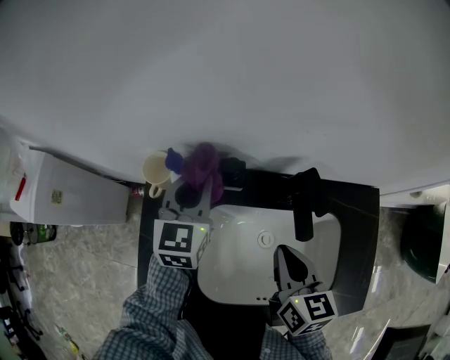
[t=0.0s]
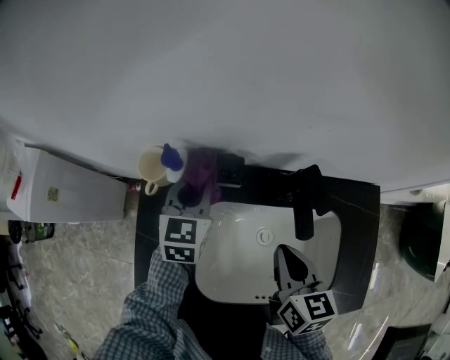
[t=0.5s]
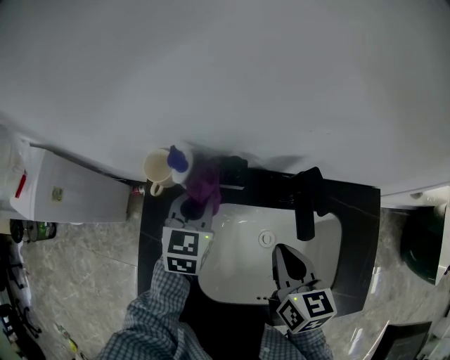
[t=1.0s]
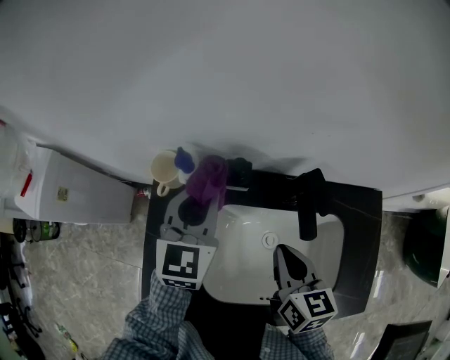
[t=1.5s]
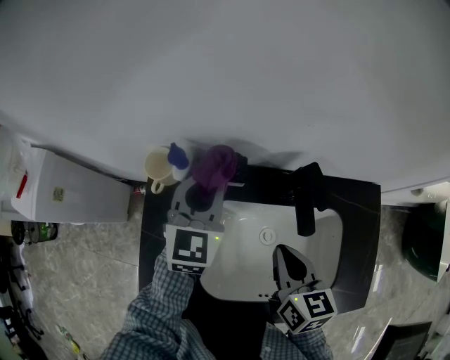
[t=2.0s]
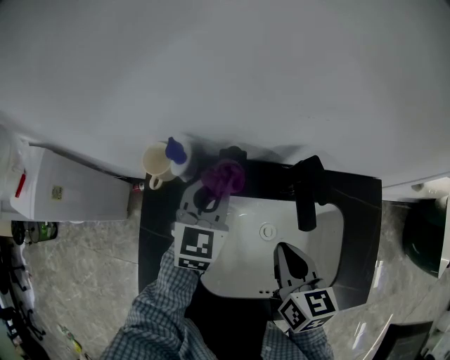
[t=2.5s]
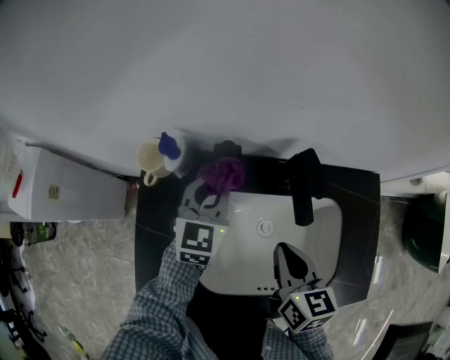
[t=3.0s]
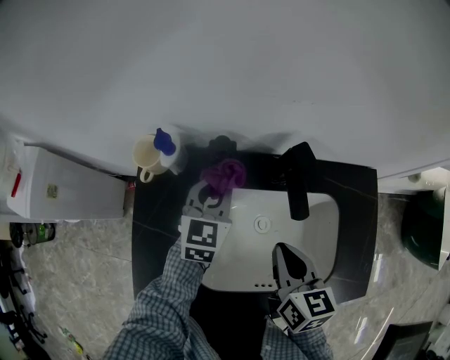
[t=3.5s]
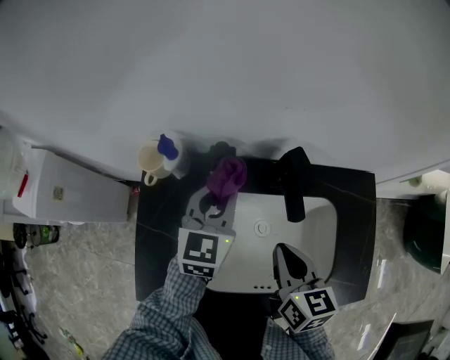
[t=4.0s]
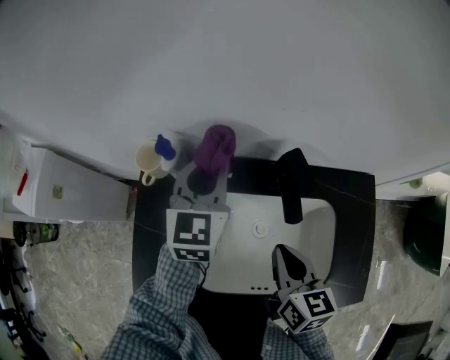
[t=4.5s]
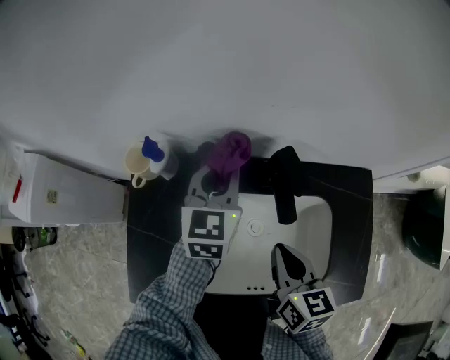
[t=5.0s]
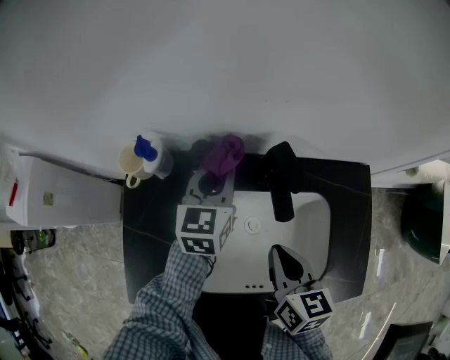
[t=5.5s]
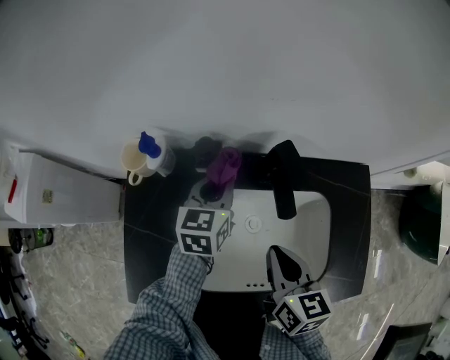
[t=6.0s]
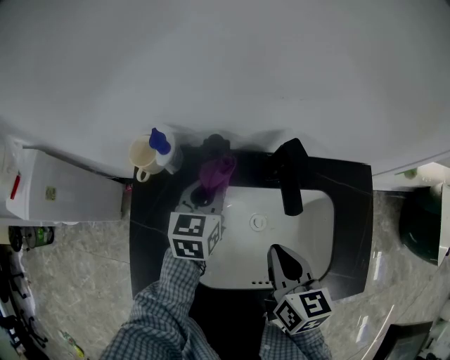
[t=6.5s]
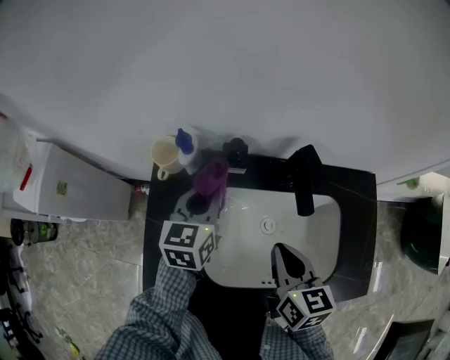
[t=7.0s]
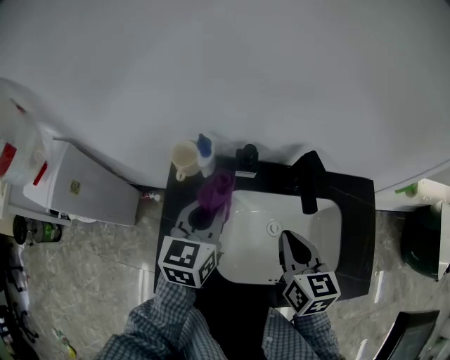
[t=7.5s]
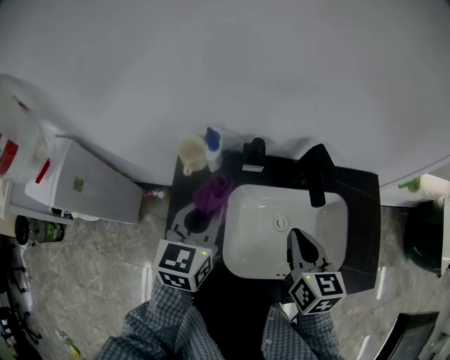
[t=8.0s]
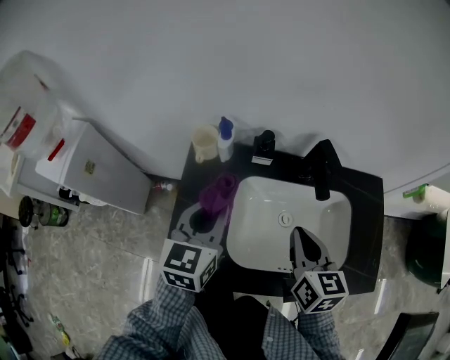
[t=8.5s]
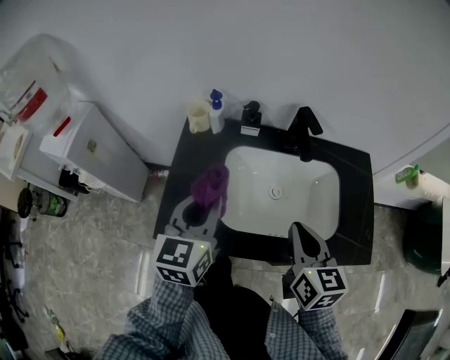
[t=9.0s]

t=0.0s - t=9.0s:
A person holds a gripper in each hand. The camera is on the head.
t=0.0s - t=2.0s: The left gripper goes downward and returns, roughly 5 cm each way.
t=2.0s - t=4.5s: The left gripper travels downward and back again, some 10 cm each way.
t=4.5s - t=7.0s: The left gripper moves downward, backward and to the left, about 10 cm.
t=7.0s - t=9.0s: The left gripper moves backward and upward, about 25 cm. The right gripper moves backward, approximately 15 cm.

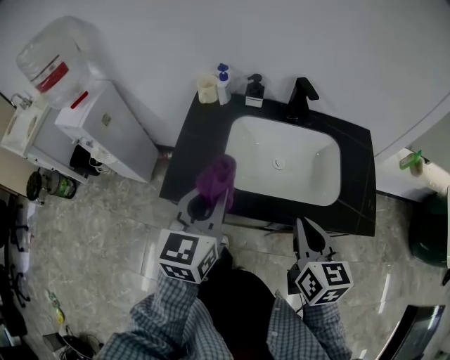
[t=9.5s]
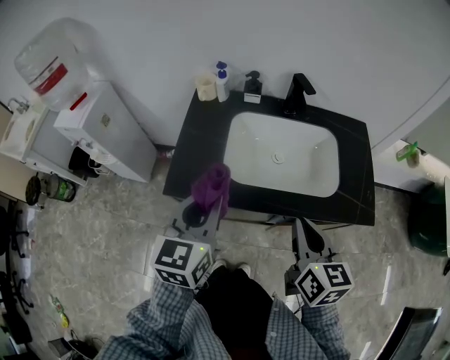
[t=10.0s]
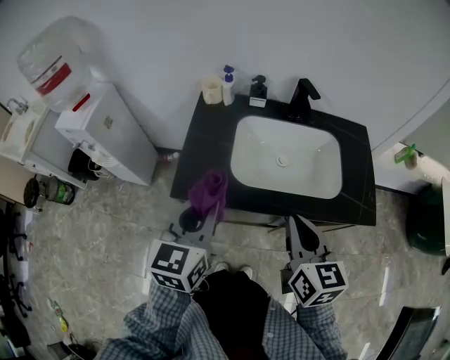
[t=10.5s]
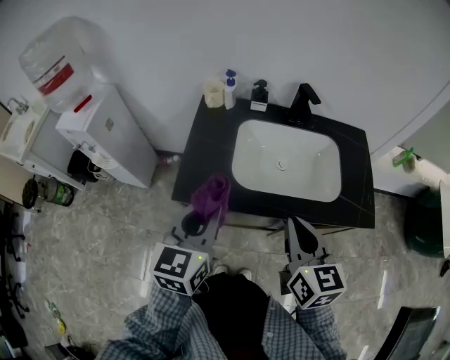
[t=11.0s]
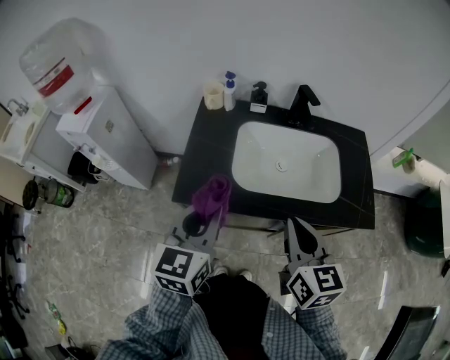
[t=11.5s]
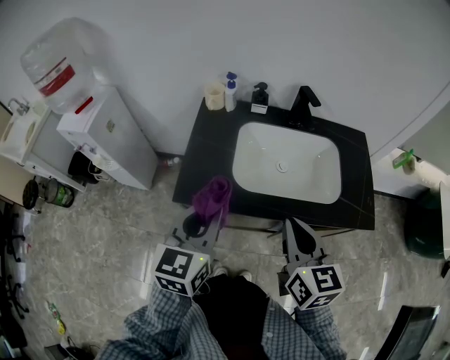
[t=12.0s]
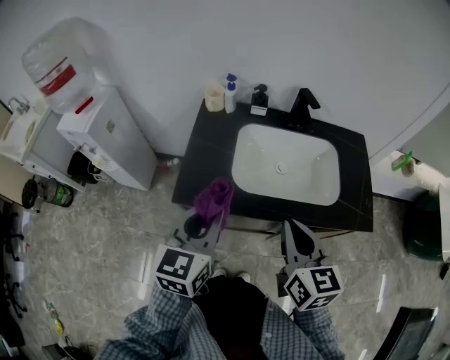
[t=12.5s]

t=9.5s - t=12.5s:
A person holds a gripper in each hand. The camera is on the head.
t=9.5s - t=11.0s: The left gripper shifts approximately 10 cm to the left and backward. The right gripper moves to the left, about 10 cm.
t=11.0s - t=12.5s: Neither gripper changes place.

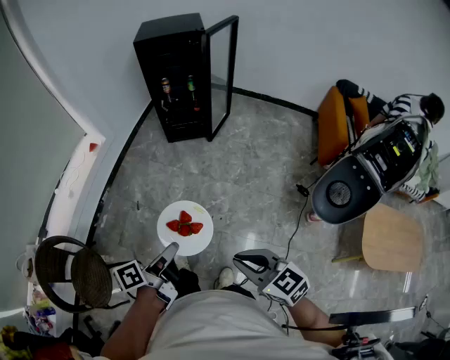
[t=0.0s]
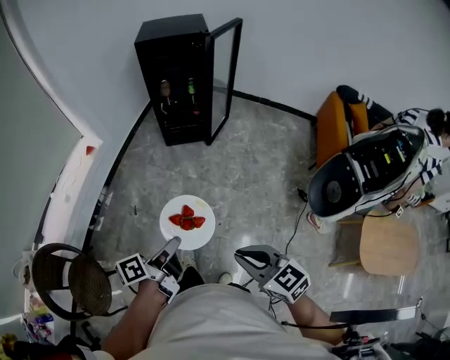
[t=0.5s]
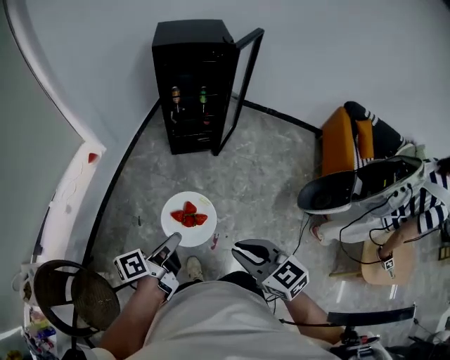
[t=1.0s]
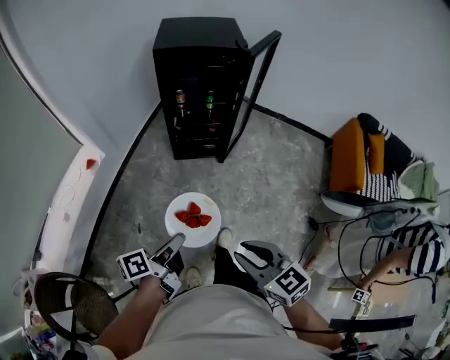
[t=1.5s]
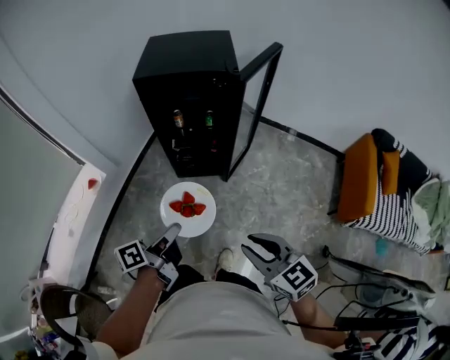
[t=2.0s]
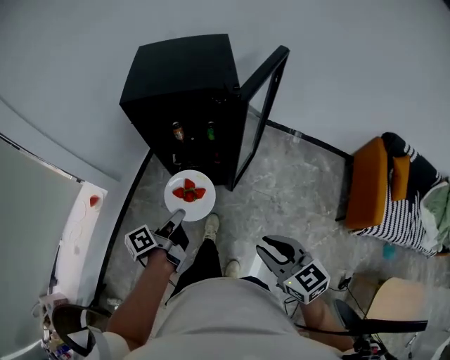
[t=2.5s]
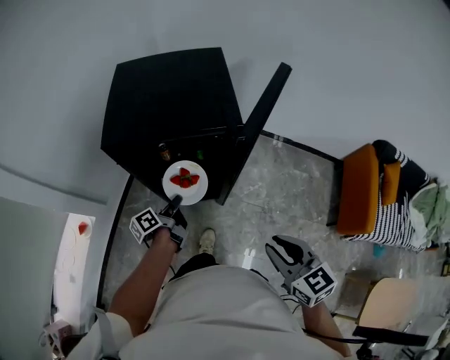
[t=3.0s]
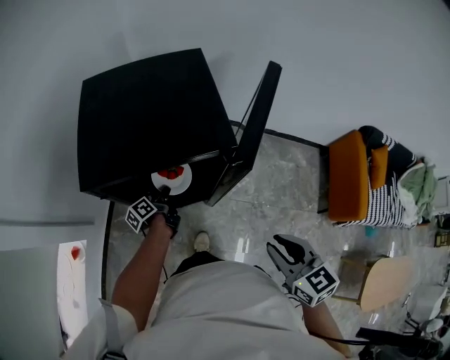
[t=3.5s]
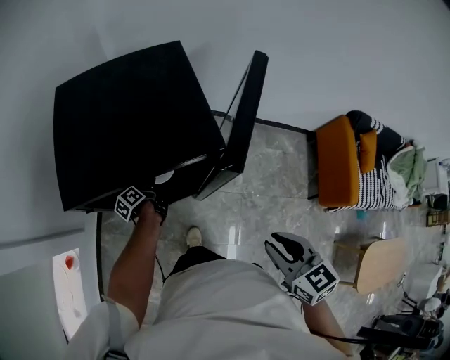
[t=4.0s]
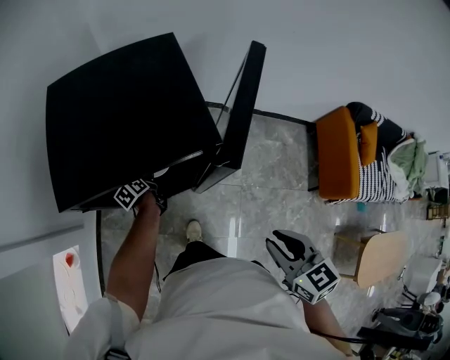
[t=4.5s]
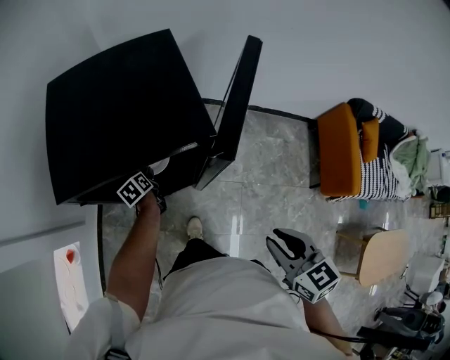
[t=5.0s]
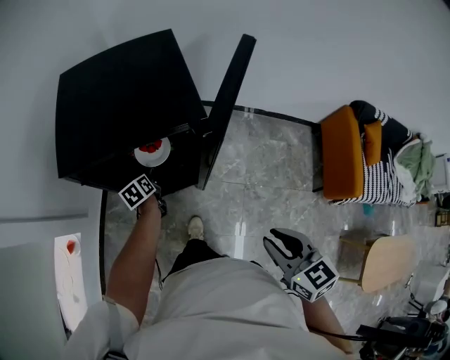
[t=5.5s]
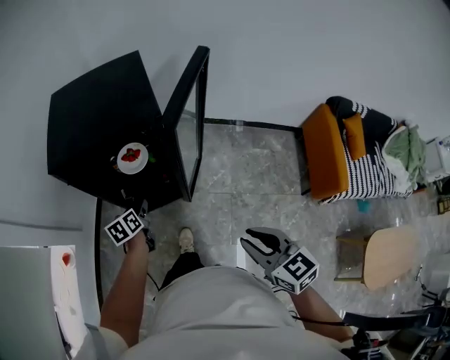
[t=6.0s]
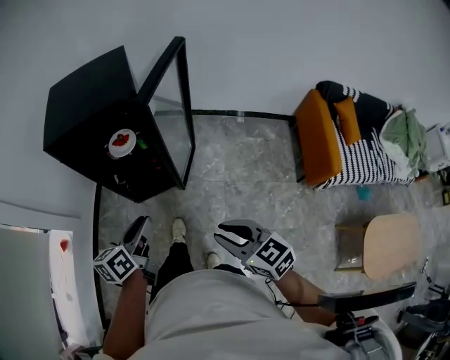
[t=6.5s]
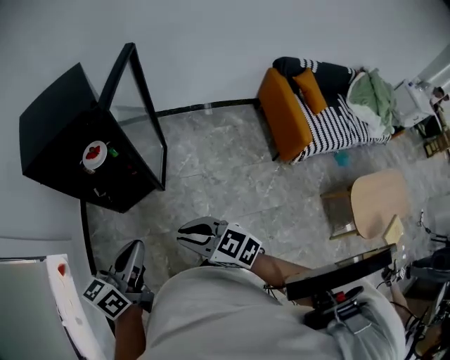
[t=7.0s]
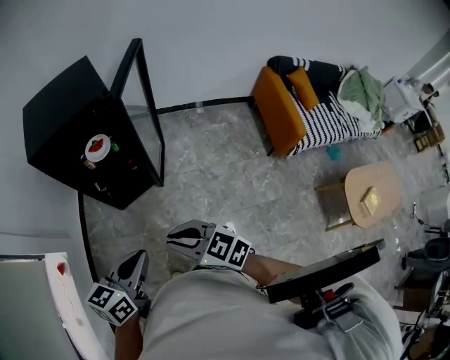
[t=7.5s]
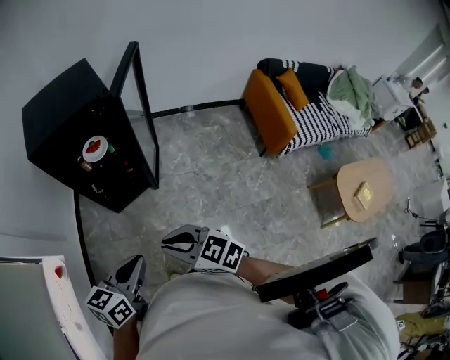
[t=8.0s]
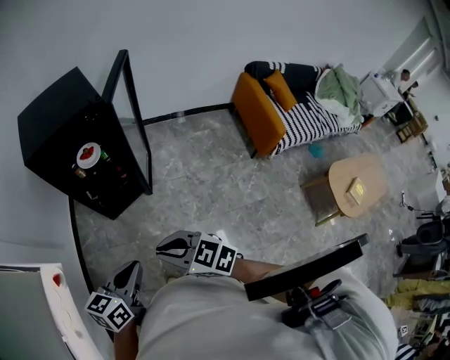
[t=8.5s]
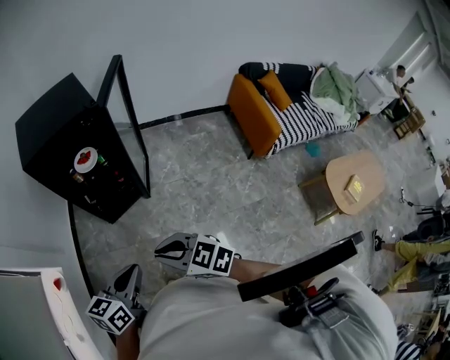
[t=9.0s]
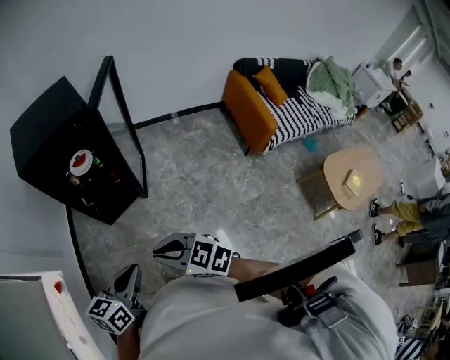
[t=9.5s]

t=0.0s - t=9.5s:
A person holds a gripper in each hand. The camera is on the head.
t=0.0s - t=2.0s: The two grippers travel together, forward, approximately 50 cm.
t=2.0s - t=4.0s: The right gripper moves forward, some 30 cm, and rotates roughly 30 degrees; the left gripper shifts approximately 60 cm forward and downward, and changes its angle by about 20 degrees.
t=4.0s - t=5.5s: The grippers both shift backward by approximately 5 cm. The left gripper changes its angle by approximately 40 degrees, and opens up.
t=5.5s - t=7.5s: The left gripper heads backward and upward, covering approximately 60 cm, rotates roughly 50 degrees, and closes. The right gripper heads backward and to the left, covering some 25 cm, and turns by about 20 degrees.
t=7.5s - t=9.5s: Both grippers move backward, some 5 cm.

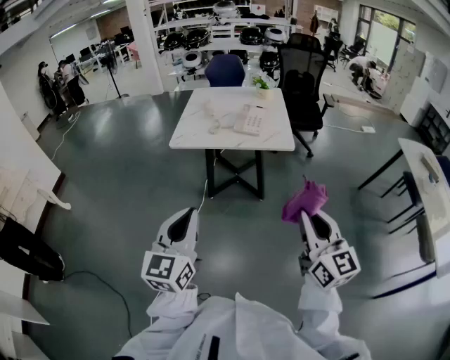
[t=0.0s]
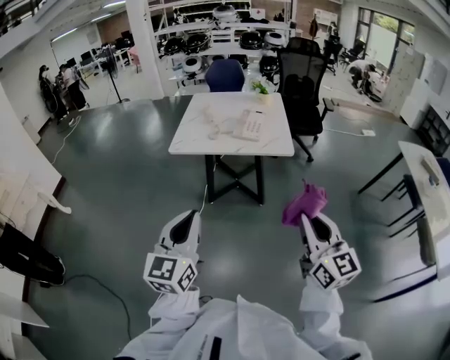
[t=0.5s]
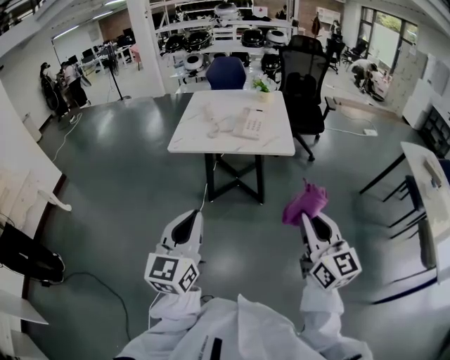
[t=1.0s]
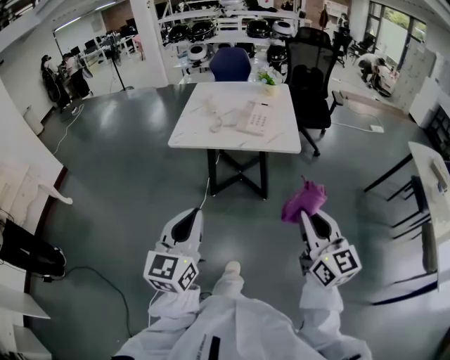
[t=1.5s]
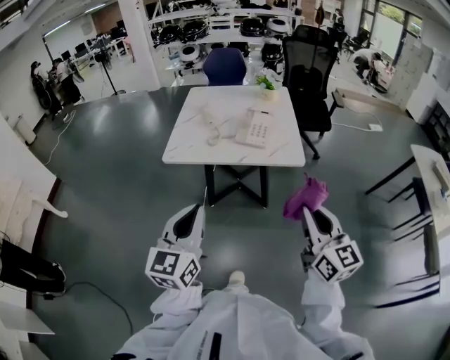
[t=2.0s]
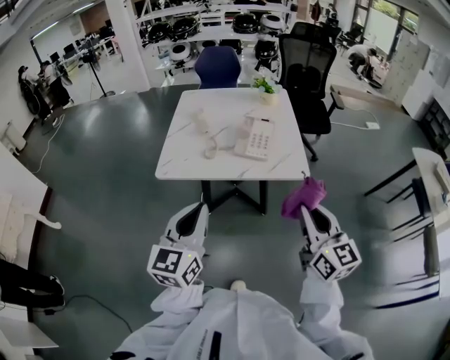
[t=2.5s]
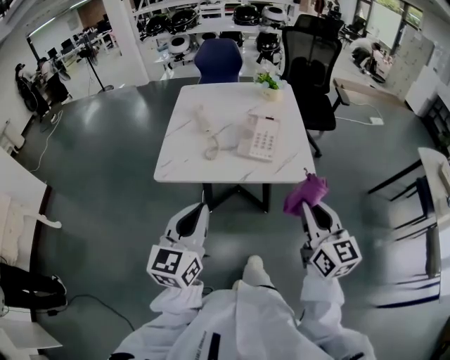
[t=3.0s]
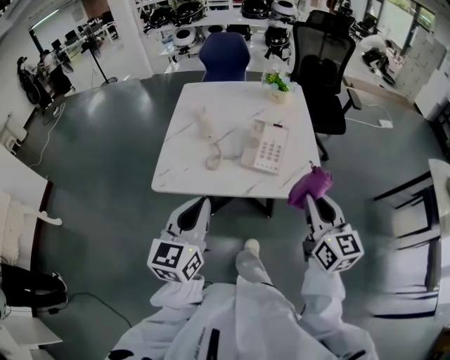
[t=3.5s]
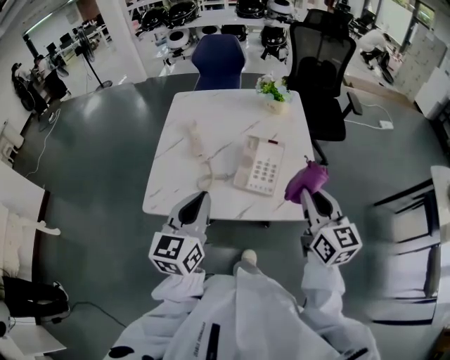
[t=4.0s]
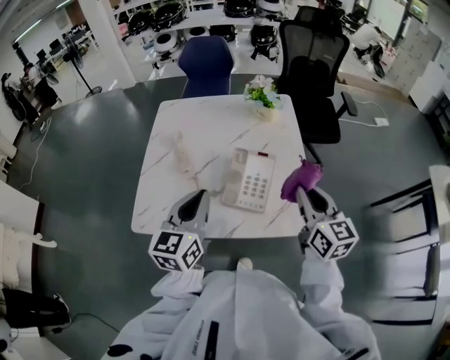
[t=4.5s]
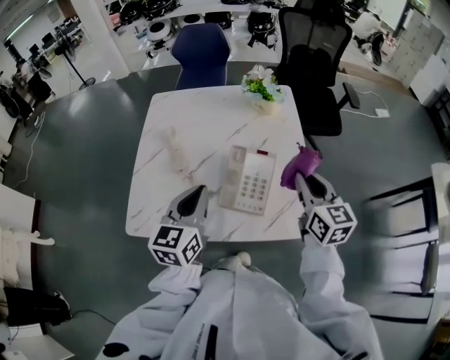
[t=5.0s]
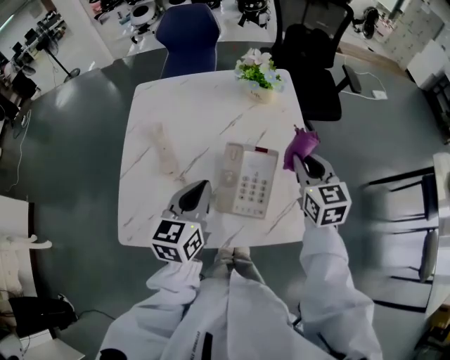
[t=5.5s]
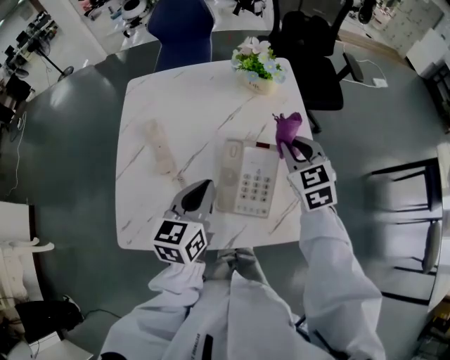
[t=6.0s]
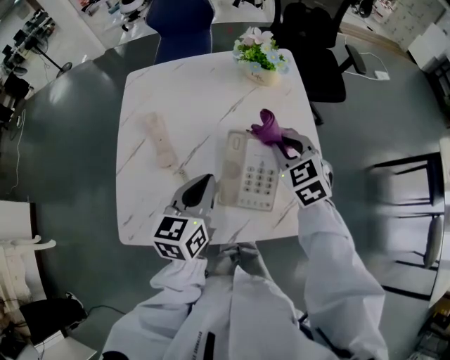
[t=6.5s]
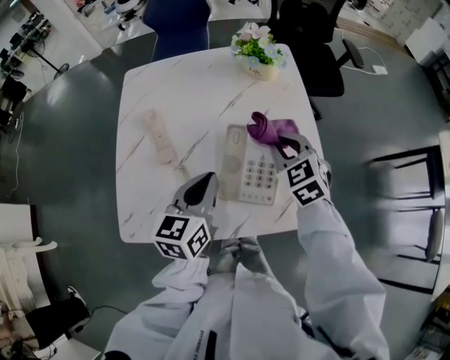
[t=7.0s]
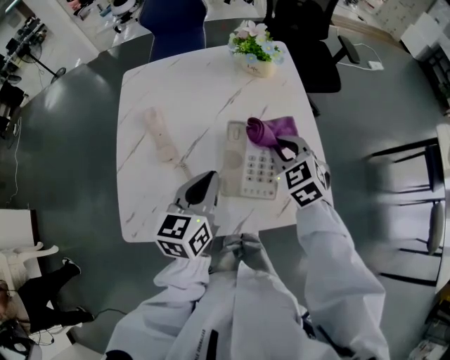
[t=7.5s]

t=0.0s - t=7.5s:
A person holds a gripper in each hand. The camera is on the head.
t=0.0s - t=2.0s: Both grippers travel together forward, approximately 15 cm.
t=2.0s - t=4.0s: The two grippers go about 35 cm forward.
t=4.0s - t=5.5s: Both grippers travel together forward and downward, roughly 20 cm. The right gripper changes its angle by about 20 degrees.
t=5.5s - t=7.5s: The right gripper goes approximately 10 cm to the left and downward, and changes its angle by some 30 degrees.
